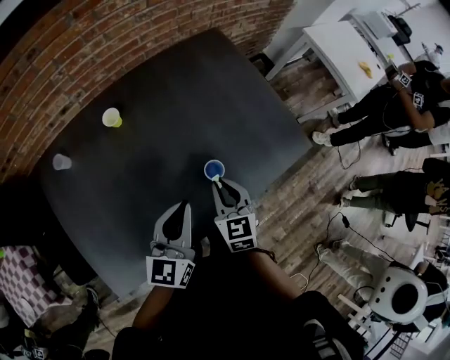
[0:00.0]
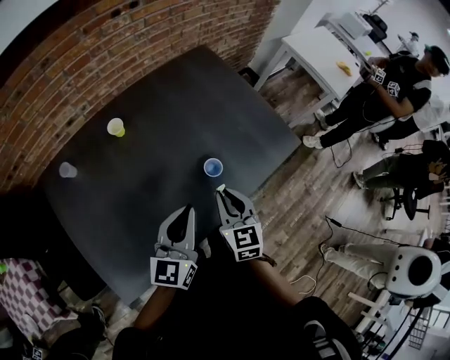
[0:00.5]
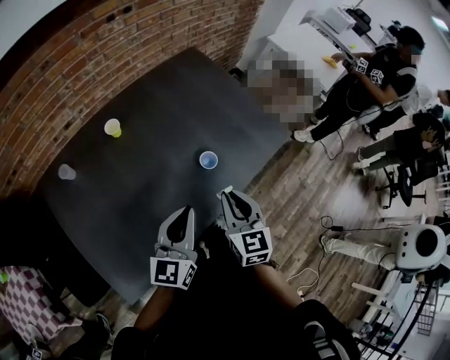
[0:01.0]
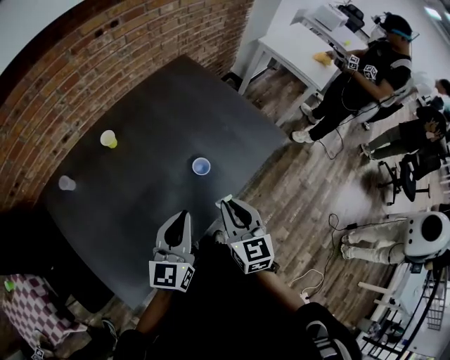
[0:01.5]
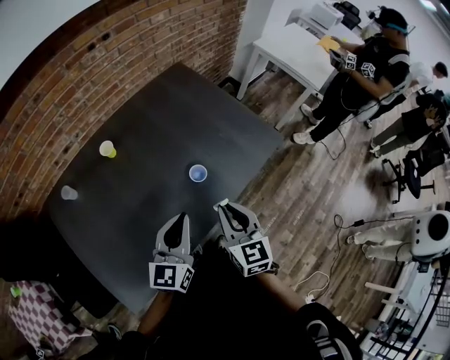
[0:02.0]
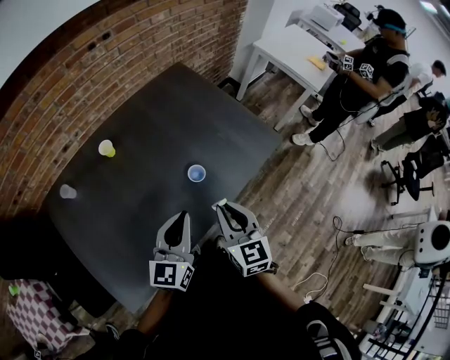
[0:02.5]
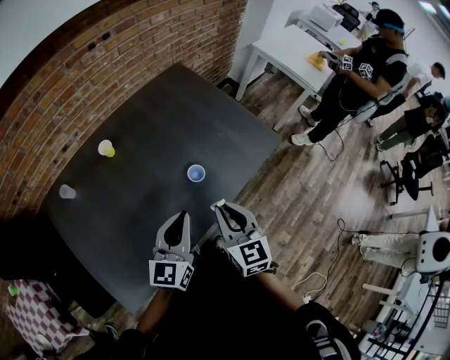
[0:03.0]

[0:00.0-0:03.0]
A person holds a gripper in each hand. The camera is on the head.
0:00.0 to 0:01.5: The right gripper is displaced backward and upward by approximately 15 cm, while the left gripper is displaced backward by approximately 10 cm.
0:01.5 to 0:03.0: The grippers stay close to where they were, moving slightly.

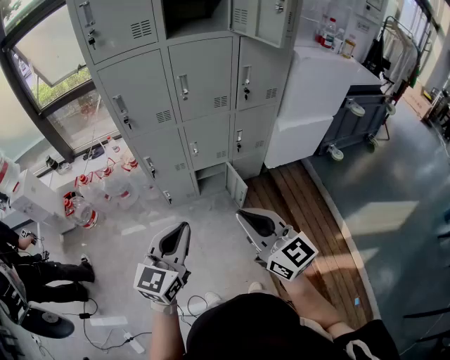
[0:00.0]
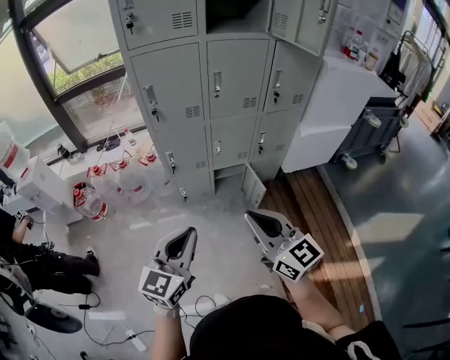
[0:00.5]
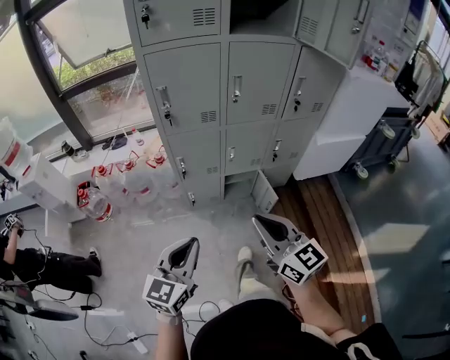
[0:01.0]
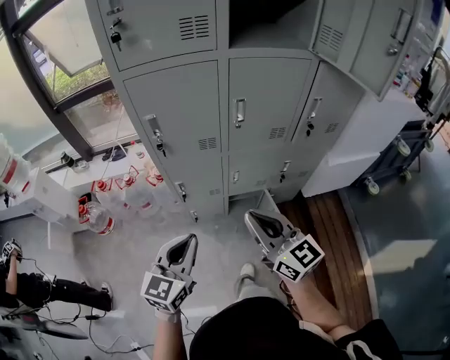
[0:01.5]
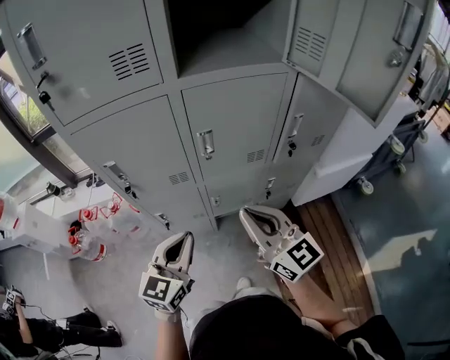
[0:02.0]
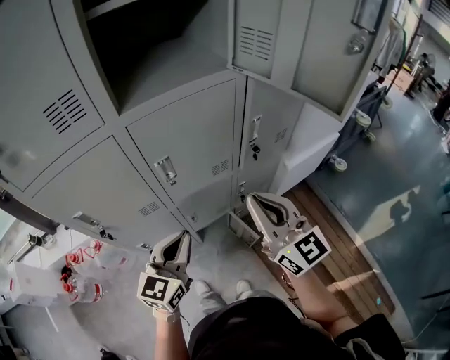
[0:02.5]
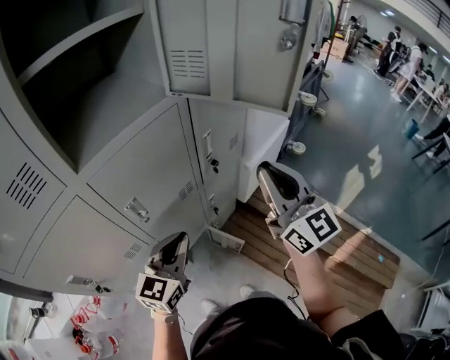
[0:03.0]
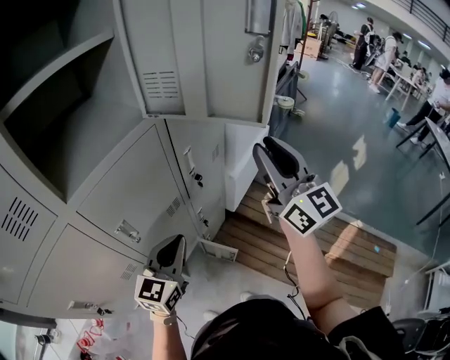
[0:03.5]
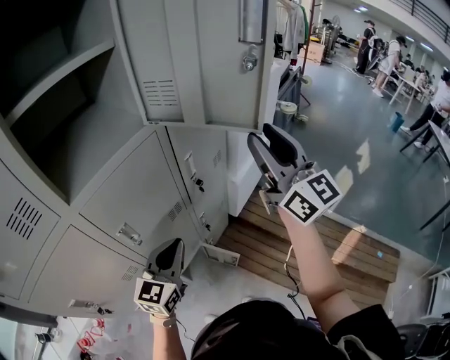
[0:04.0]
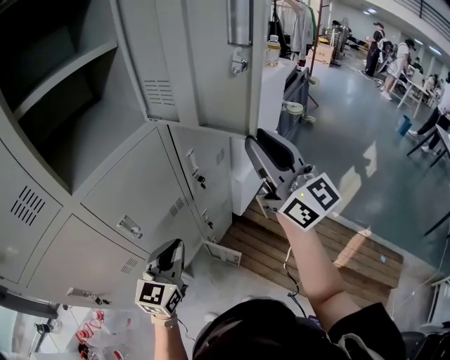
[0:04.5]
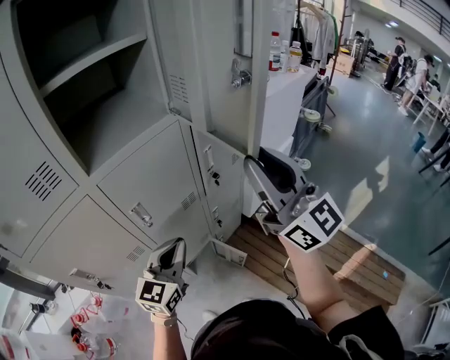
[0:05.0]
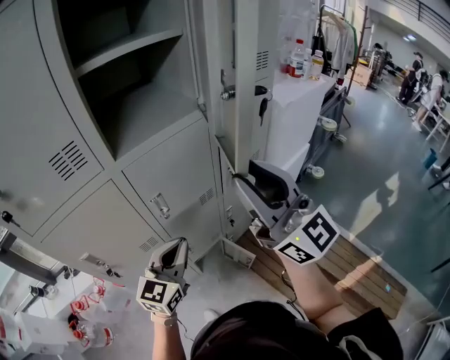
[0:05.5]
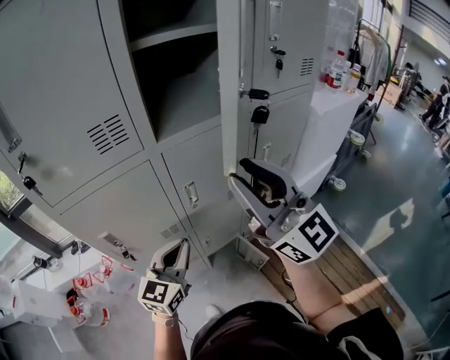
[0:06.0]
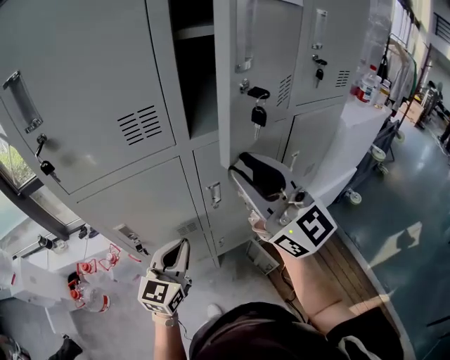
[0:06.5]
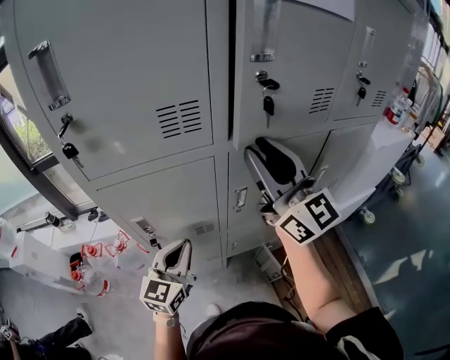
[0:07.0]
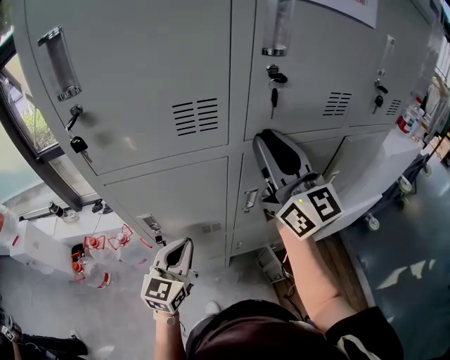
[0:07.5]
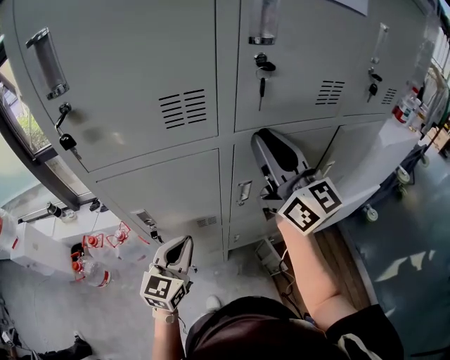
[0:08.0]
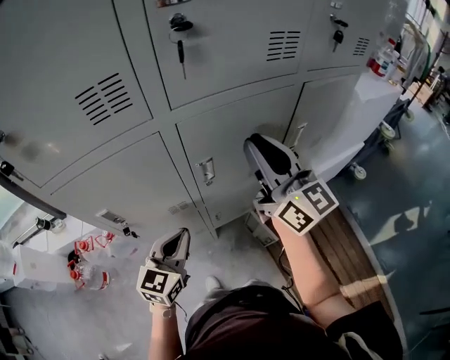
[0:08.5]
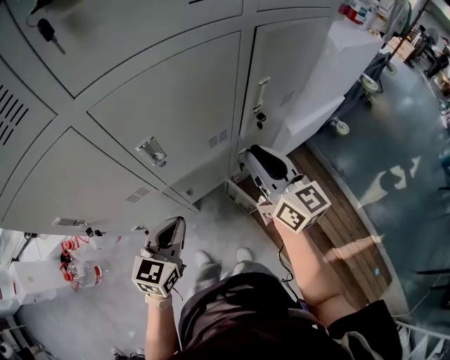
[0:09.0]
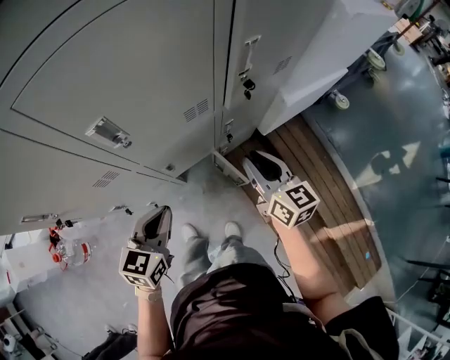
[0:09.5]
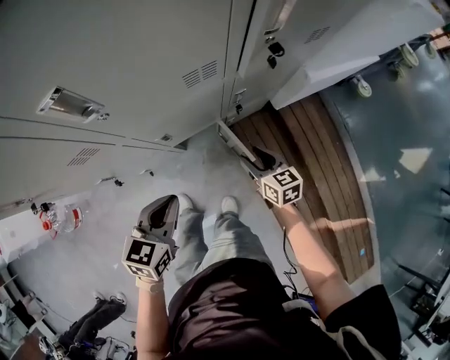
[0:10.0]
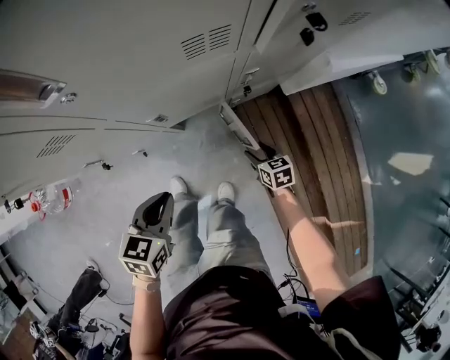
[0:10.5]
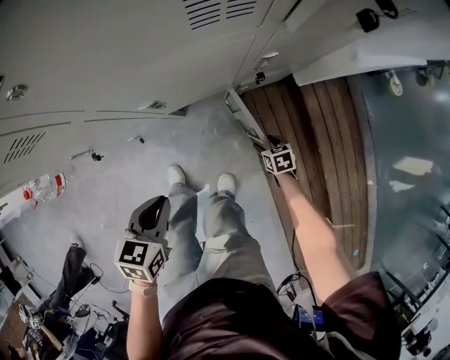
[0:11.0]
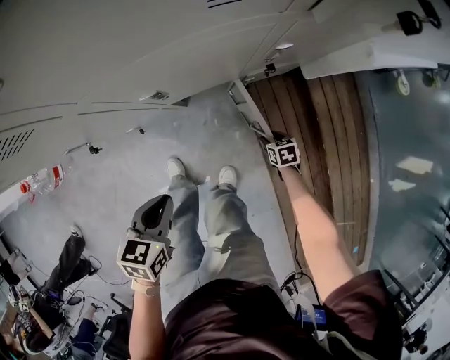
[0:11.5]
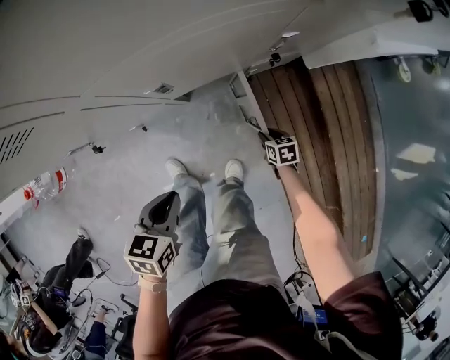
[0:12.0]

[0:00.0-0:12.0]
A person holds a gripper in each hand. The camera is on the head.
0:00.0 to 0:02.0: The two grippers go about 35 cm forward.
0:02.0 to 0:04.0: The left gripper moves approximately 20 cm, and rotates approximately 40 degrees; the right gripper shifts by approximately 35 cm, swivels about 50 degrees, and opens up.
0:04.0 to 0:06.0: The right gripper moves about 25 cm, and rotates some 30 degrees; the left gripper shifts by some 15 cm, and turns by approximately 20 degrees.
0:06.0 to 0:08.0: The right gripper is displaced forward and to the left by approximately 15 cm, while the left gripper goes about 10 cm to the left.
0:08.0 to 0:10.0: The left gripper goes approximately 30 cm downward and to the right, and swivels some 30 degrees. The right gripper moves downward and to the right, roughly 70 cm, and points its fingers approximately 60 degrees further downward.
0:10.0 to 0:12.0: The right gripper goes about 35 cm downward, and changes its angle by about 30 degrees, while the left gripper heads downward, covering approximately 20 cm, and rotates some 20 degrees.

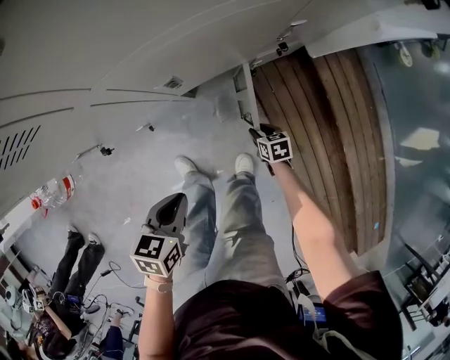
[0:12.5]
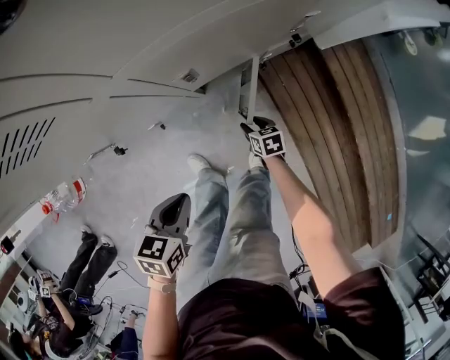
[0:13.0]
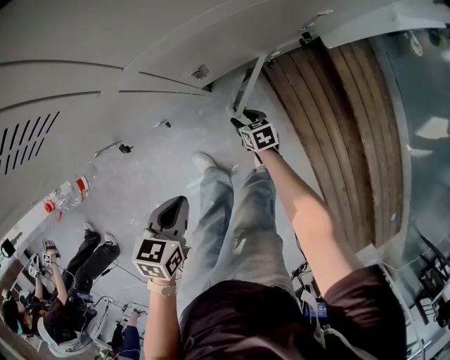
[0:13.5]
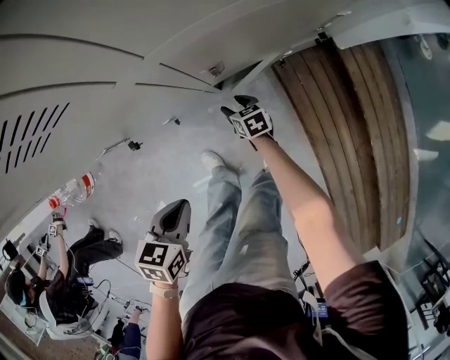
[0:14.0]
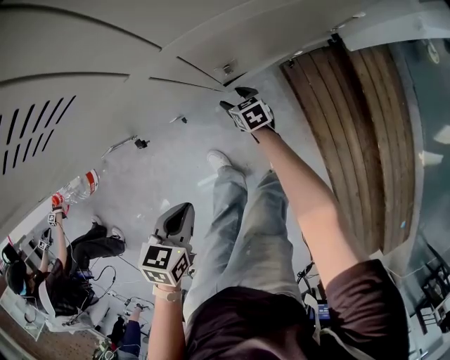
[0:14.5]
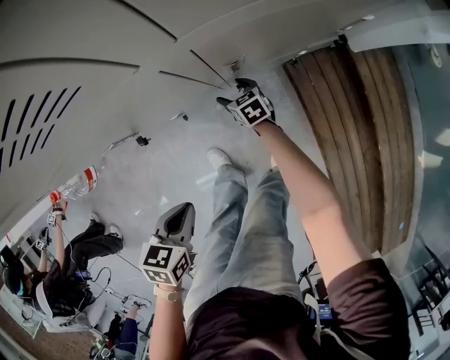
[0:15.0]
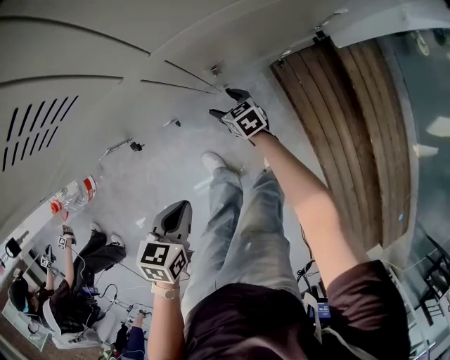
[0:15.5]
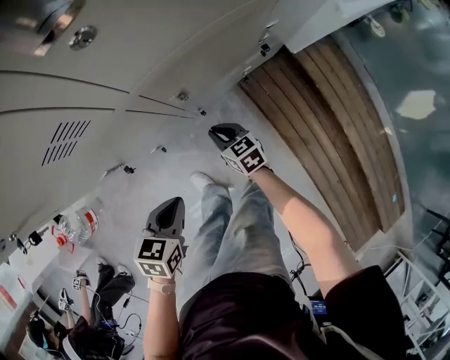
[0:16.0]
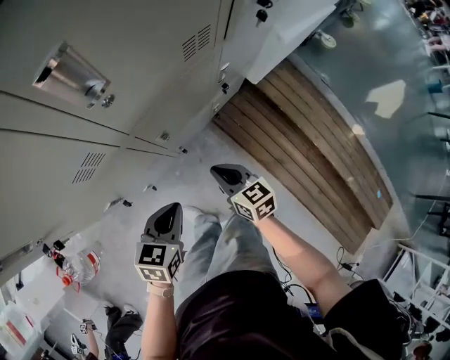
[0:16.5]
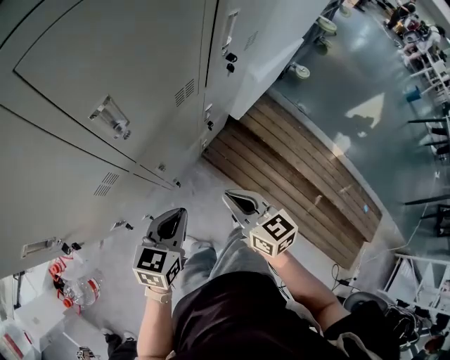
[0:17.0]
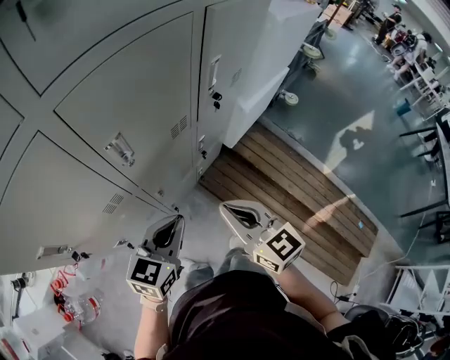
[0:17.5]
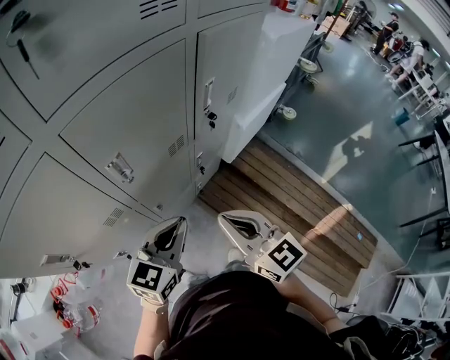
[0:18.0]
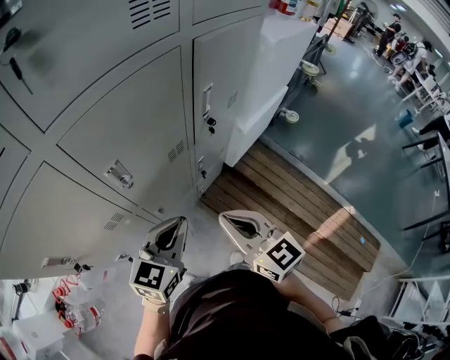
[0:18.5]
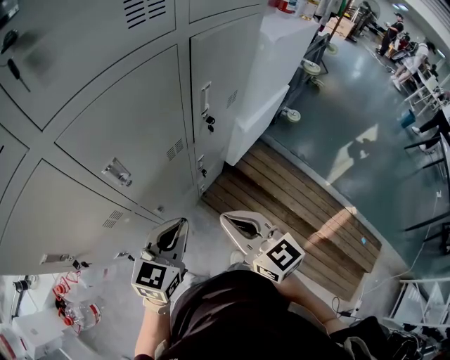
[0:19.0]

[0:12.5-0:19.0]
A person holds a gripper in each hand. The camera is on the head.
0:12.5 to 0:14.5: The right gripper shifts approximately 25 cm to the left and forward. Meanwhile the left gripper travels to the left by roughly 10 cm.
0:14.5 to 0:17.0: The right gripper shifts approximately 50 cm upward, swivels roughly 40 degrees, and closes up. The left gripper heads upward, covering about 25 cm, and turns by approximately 40 degrees.
0:17.0 to 0:19.0: The right gripper is displaced upward by roughly 15 cm. The left gripper moves upward and to the right, some 15 cm.

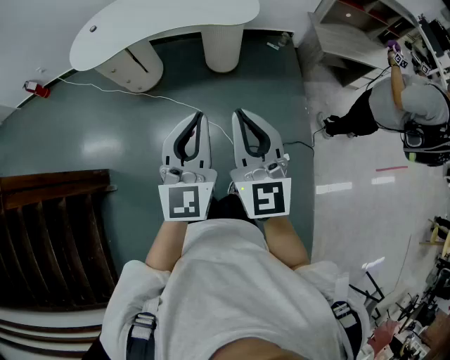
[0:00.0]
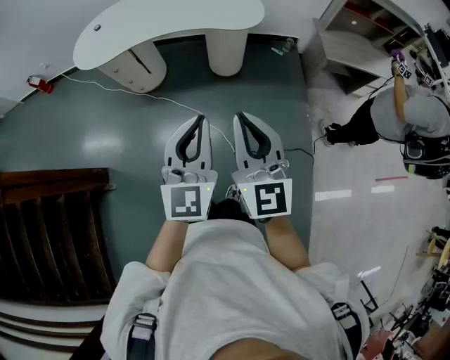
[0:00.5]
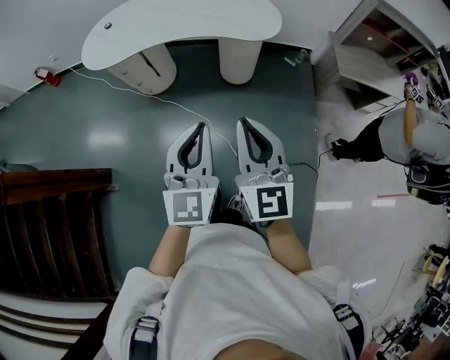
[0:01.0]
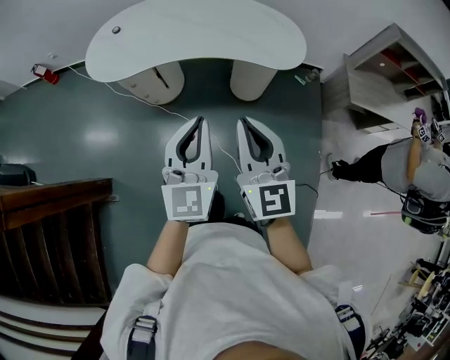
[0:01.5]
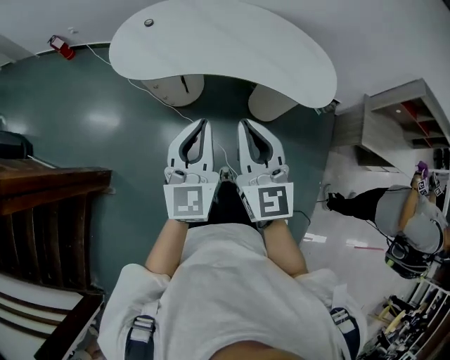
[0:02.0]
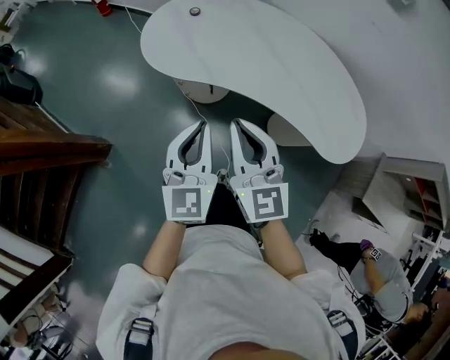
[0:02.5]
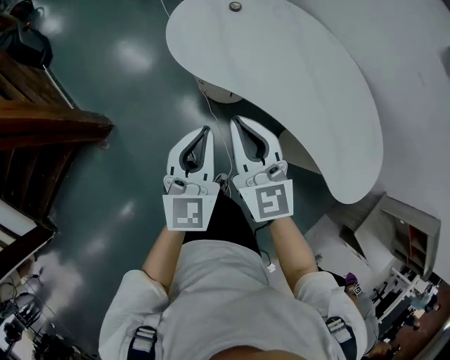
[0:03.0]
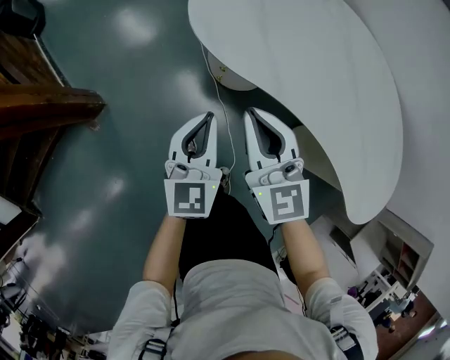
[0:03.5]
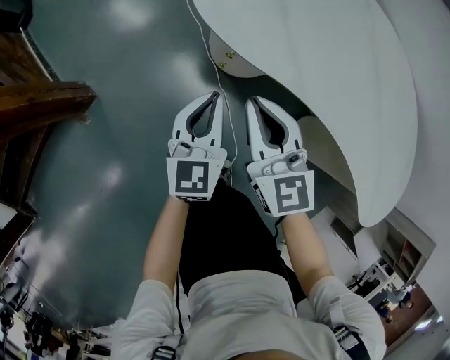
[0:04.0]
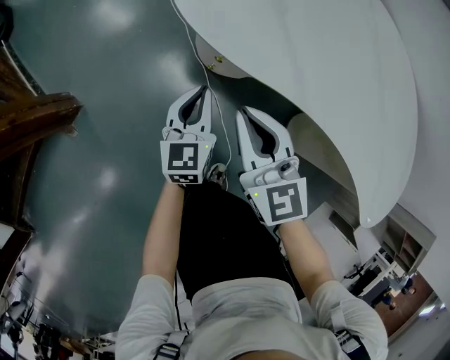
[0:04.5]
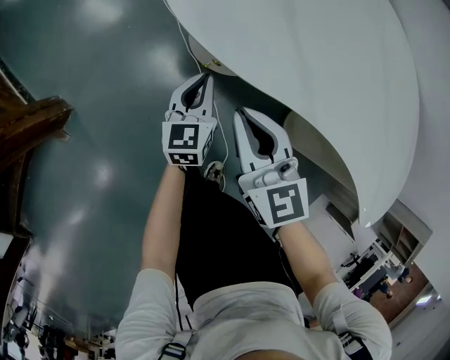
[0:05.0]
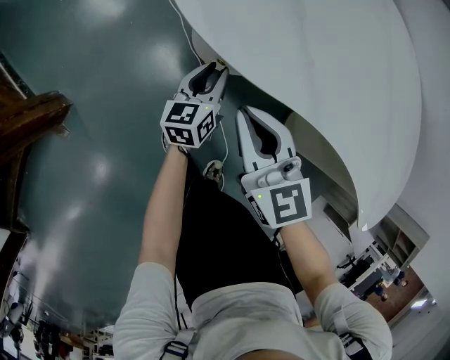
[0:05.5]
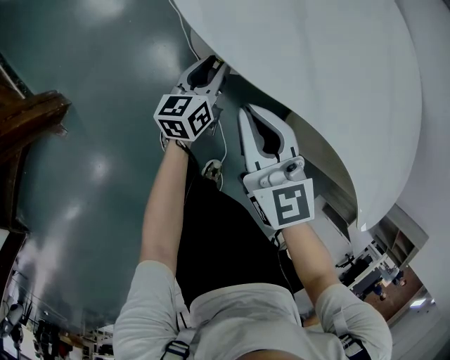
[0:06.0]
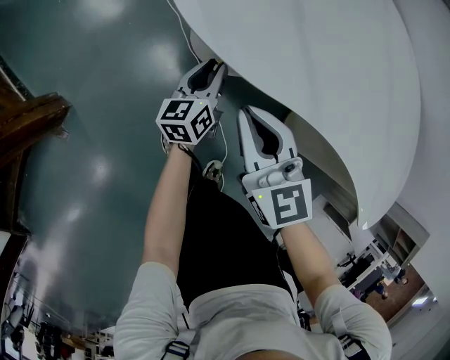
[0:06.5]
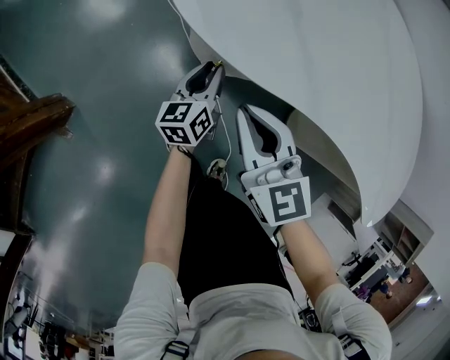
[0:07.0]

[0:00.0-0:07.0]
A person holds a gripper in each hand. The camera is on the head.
0:00.0 to 0:02.0: Both grippers travel together forward and to the left, some 40 cm. The left gripper swivels approximately 20 degrees.
0:02.0 to 0:03.5: The right gripper moves about 40 cm, and rotates approximately 40 degrees. Meanwhile the left gripper shifts by about 40 cm, and turns by approximately 30 degrees.
0:03.5 to 0:05.0: The left gripper goes approximately 30 cm downward and forward. Meanwhile the right gripper moves downward, about 20 cm.
0:05.0 to 0:07.0: The left gripper opens its fingers.
